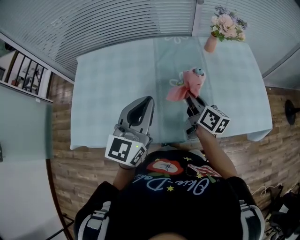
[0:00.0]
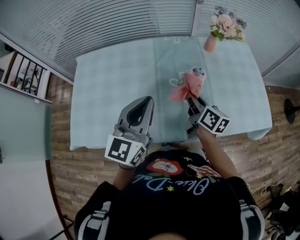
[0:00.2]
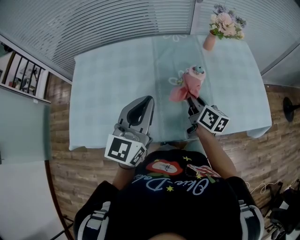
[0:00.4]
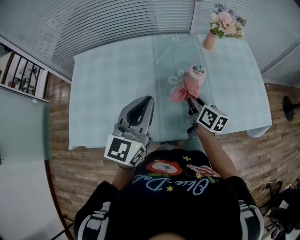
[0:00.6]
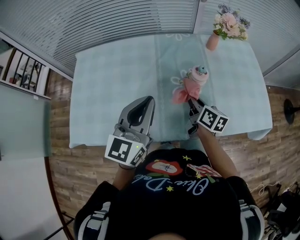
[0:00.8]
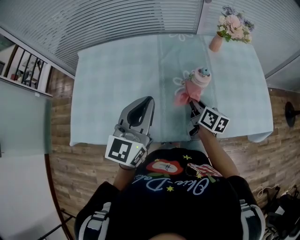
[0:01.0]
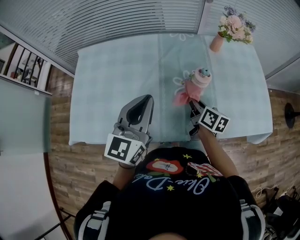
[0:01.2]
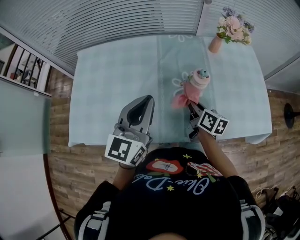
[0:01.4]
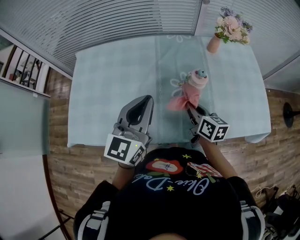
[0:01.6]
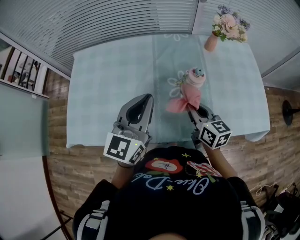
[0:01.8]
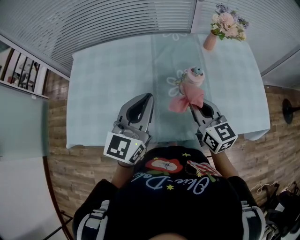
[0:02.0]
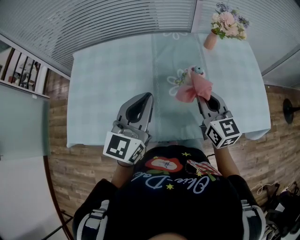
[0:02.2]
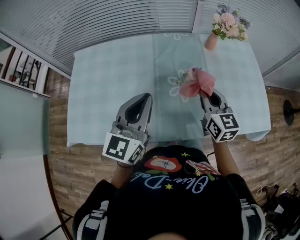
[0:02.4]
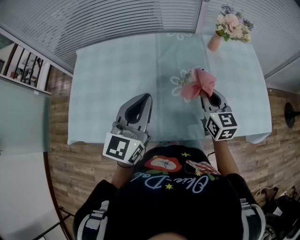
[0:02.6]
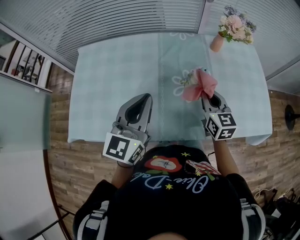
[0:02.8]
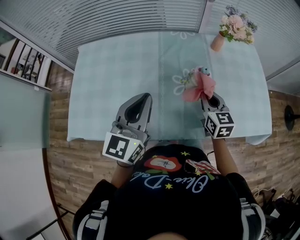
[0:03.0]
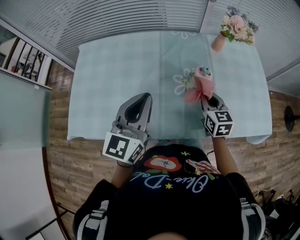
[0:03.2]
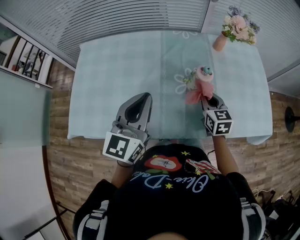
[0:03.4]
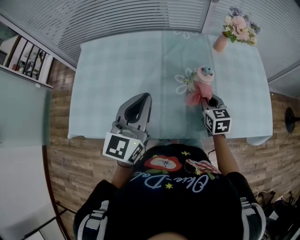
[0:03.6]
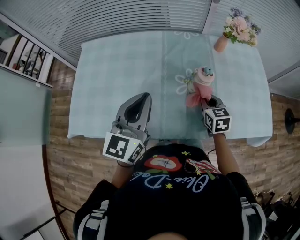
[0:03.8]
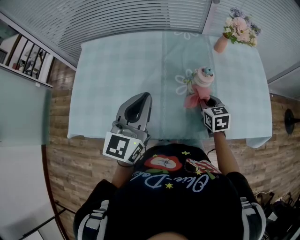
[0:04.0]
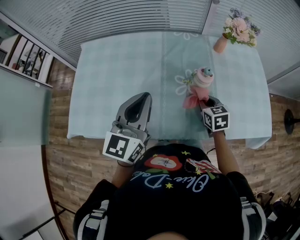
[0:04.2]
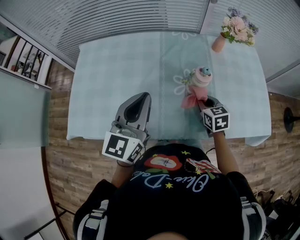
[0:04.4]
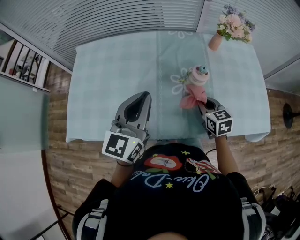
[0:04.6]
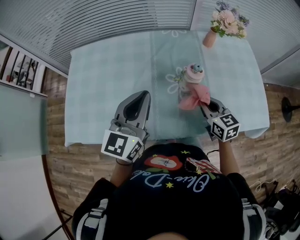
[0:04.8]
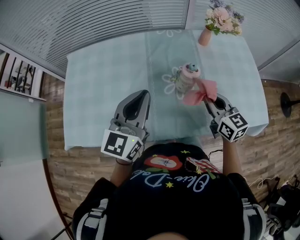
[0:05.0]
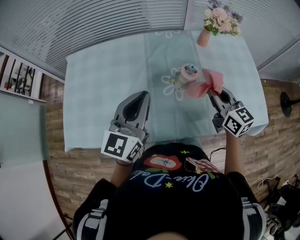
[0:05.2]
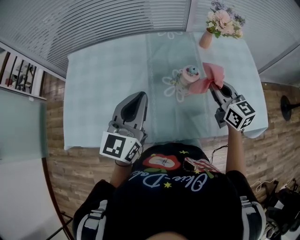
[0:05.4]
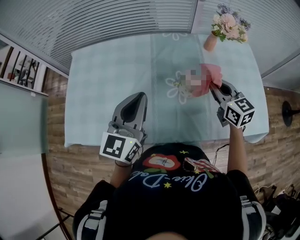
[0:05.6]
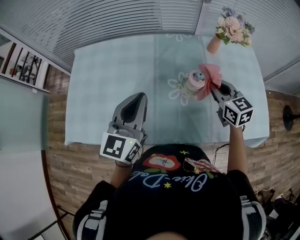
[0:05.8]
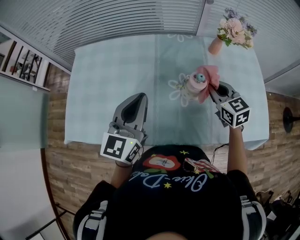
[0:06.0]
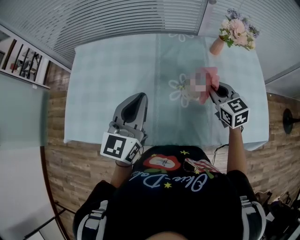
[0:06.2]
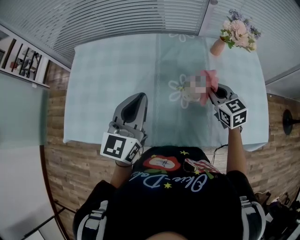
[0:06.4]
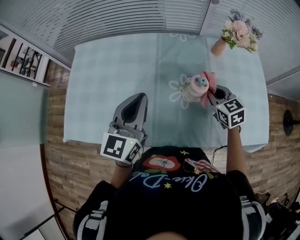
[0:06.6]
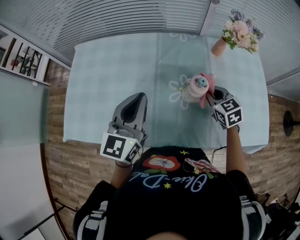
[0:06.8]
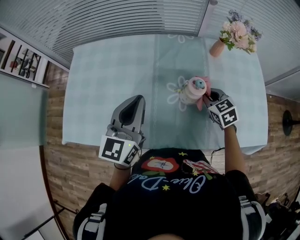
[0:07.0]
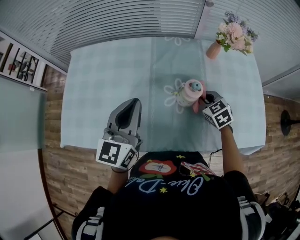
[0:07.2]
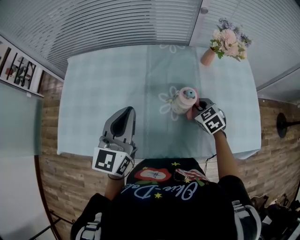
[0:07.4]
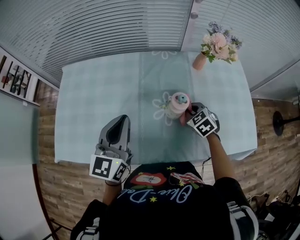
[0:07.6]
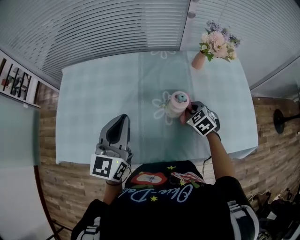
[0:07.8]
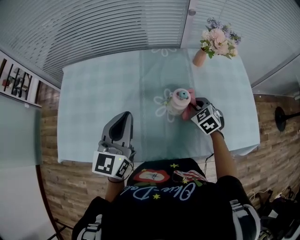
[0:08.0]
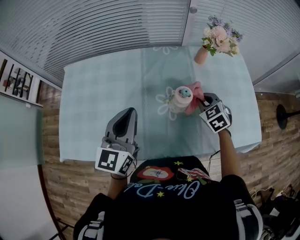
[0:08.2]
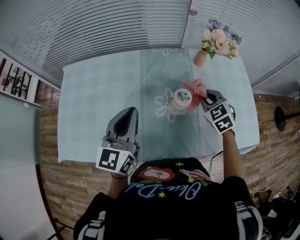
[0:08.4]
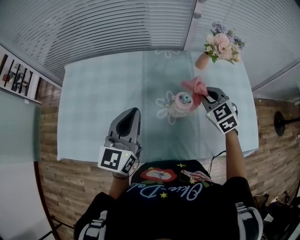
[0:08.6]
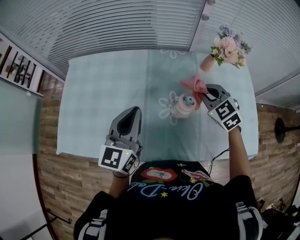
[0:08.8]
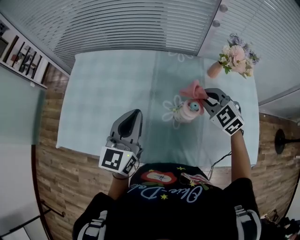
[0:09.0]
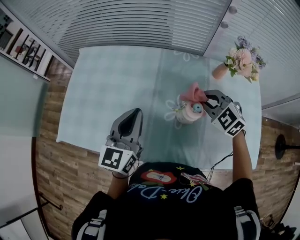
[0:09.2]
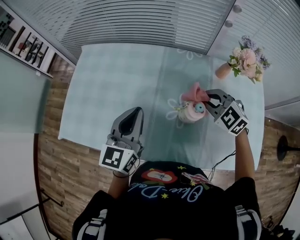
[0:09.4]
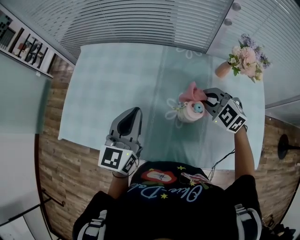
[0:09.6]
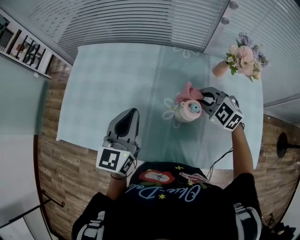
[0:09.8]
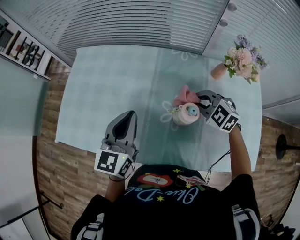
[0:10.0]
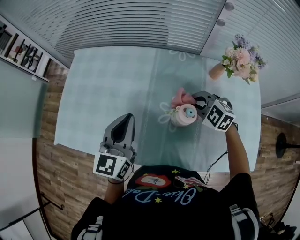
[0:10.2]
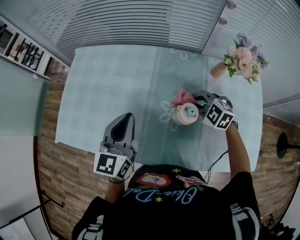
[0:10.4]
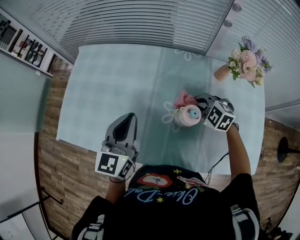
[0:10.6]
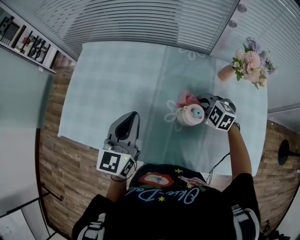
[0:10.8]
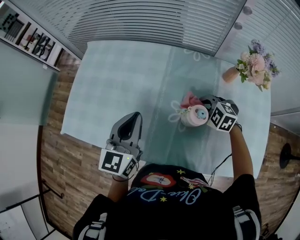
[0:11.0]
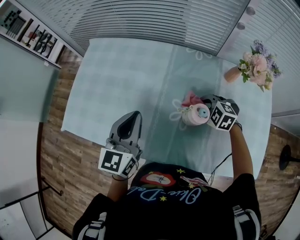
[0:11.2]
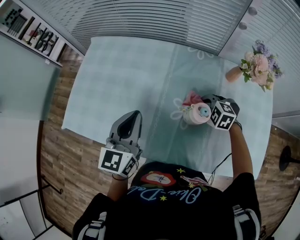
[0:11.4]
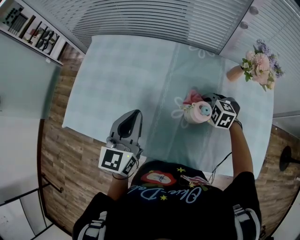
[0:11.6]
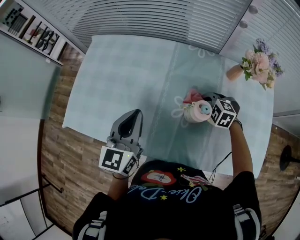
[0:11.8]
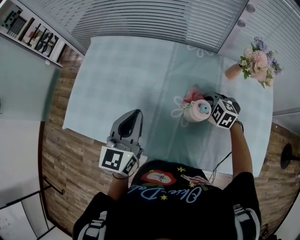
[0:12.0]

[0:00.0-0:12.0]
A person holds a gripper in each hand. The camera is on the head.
0:00.0 to 0:01.6: The right gripper changes place by approximately 5 cm.
0:01.6 to 0:03.0: The right gripper travels to the right by some 5 cm, travels upward and back again, about 10 cm each way, and changes its angle by some 30 degrees.
0:03.0 to 0:04.4: The right gripper travels downward by approximately 5 cm.
0:04.4 to 0:06.0: The right gripper heads upward and forward, covering some 10 cm.
0:06.0 to 0:07.6: The right gripper moves downward, approximately 10 cm, and swivels roughly 30 degrees.
0:07.6 to 0:09.0: The right gripper moves upward, about 15 cm, and swivels roughly 30 degrees.
0:09.0 to 0:10.4: The right gripper goes some 10 cm downward, and rotates roughly 20 degrees.
0:10.4 to 0:12.0: The right gripper travels downward by roughly 5 cm.

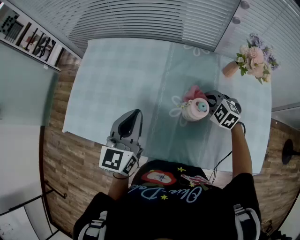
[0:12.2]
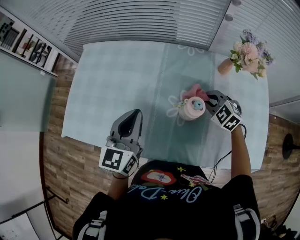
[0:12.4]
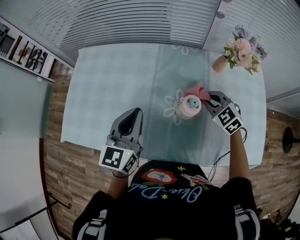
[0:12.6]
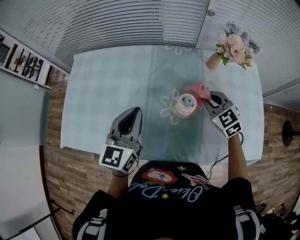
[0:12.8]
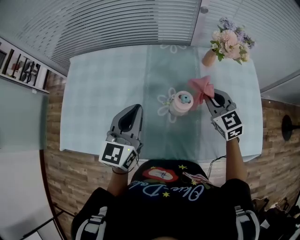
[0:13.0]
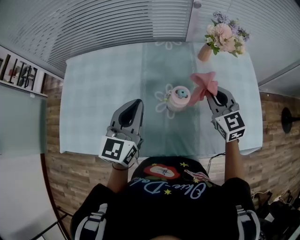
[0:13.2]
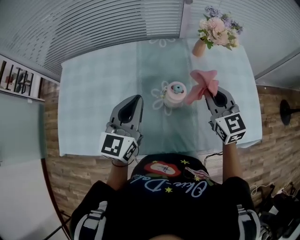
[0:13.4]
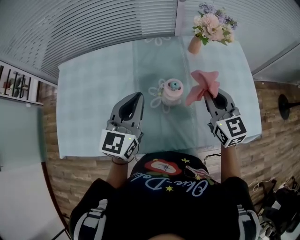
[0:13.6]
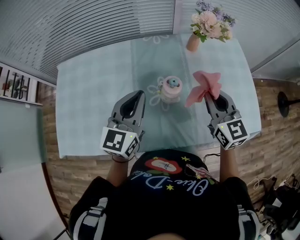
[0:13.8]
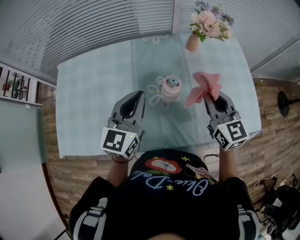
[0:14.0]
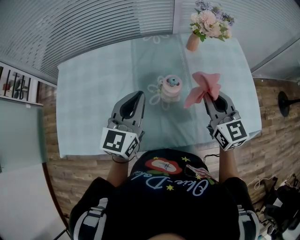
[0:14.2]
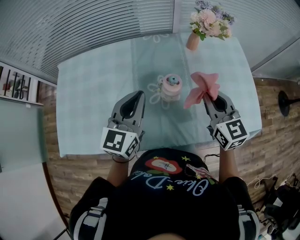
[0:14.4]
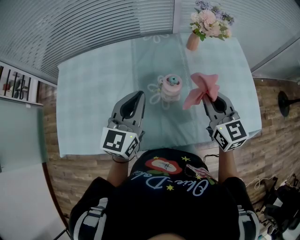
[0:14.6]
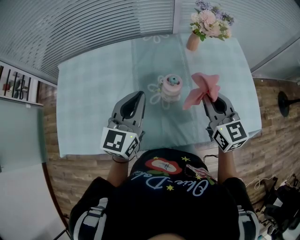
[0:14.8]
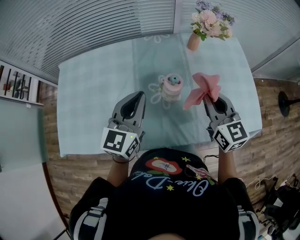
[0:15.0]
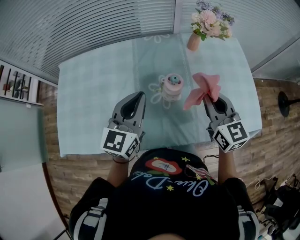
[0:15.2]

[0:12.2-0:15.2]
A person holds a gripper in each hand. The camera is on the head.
0:12.2 to 0:13.8: The left gripper shifts by approximately 10 cm, and rotates about 20 degrees; the right gripper shifts approximately 15 cm upward, and tips its fingers upward by some 40 degrees.
0:13.8 to 0:15.2: The grippers move only a little.

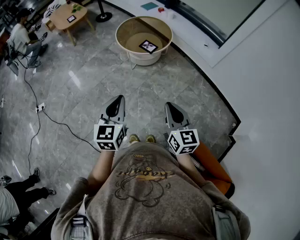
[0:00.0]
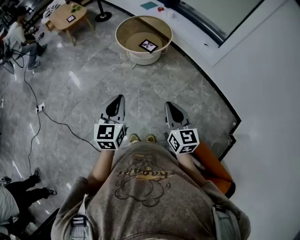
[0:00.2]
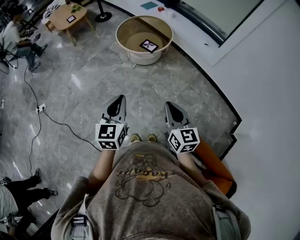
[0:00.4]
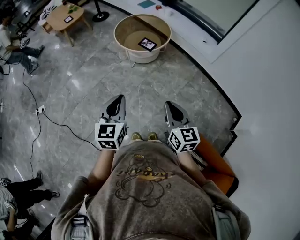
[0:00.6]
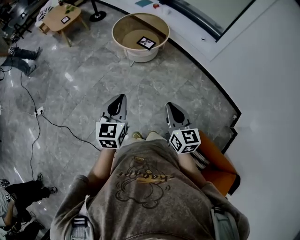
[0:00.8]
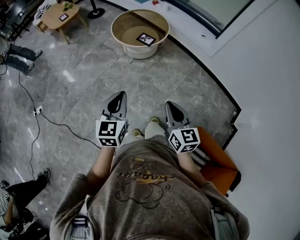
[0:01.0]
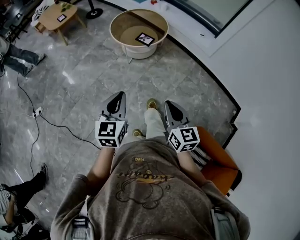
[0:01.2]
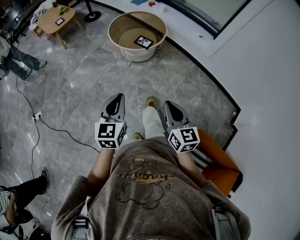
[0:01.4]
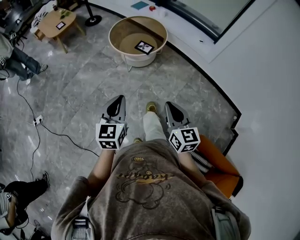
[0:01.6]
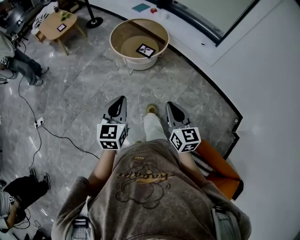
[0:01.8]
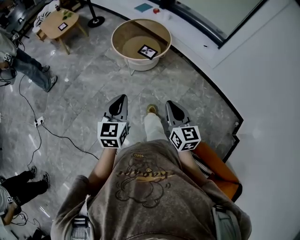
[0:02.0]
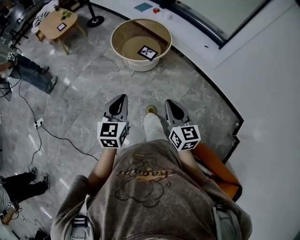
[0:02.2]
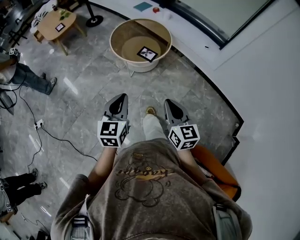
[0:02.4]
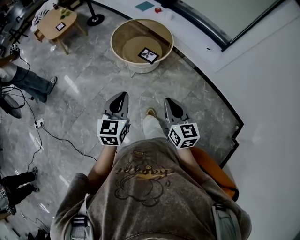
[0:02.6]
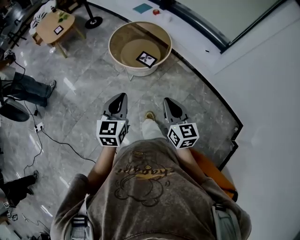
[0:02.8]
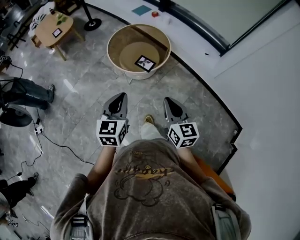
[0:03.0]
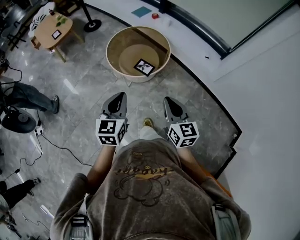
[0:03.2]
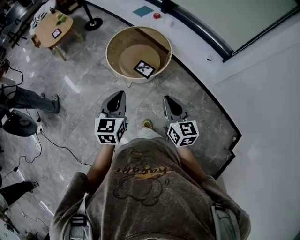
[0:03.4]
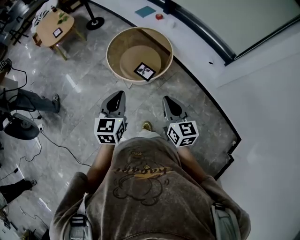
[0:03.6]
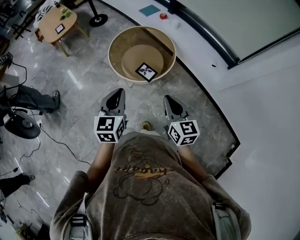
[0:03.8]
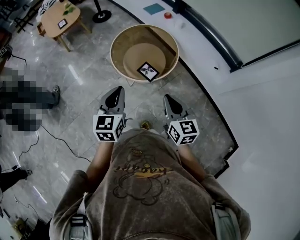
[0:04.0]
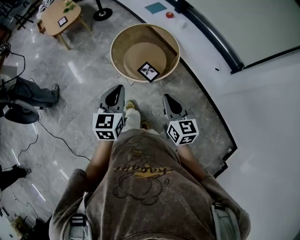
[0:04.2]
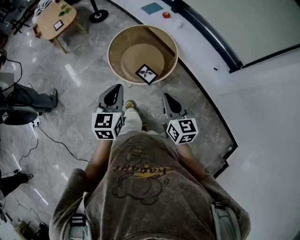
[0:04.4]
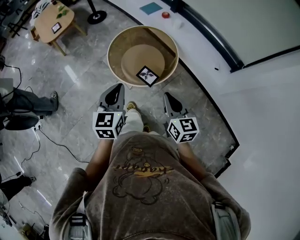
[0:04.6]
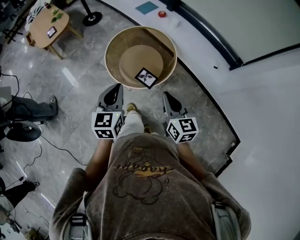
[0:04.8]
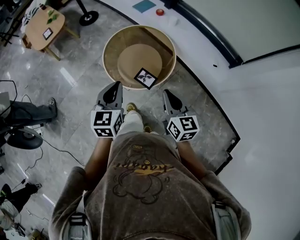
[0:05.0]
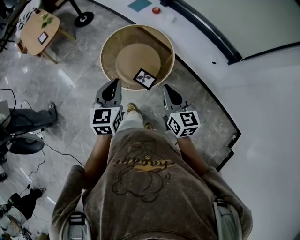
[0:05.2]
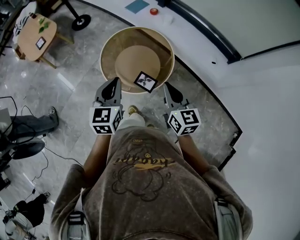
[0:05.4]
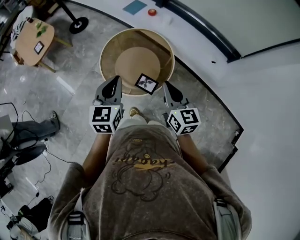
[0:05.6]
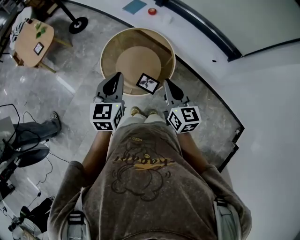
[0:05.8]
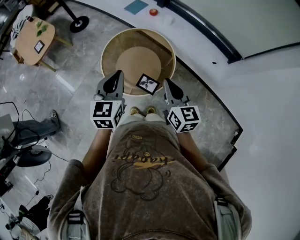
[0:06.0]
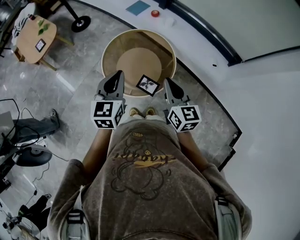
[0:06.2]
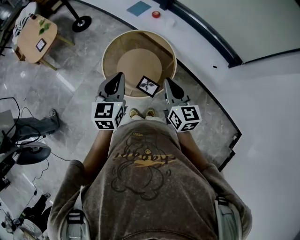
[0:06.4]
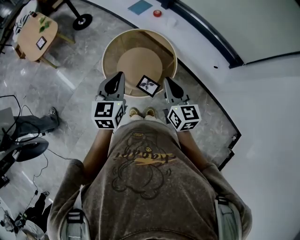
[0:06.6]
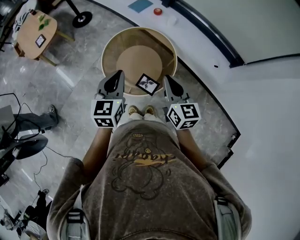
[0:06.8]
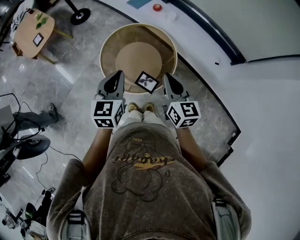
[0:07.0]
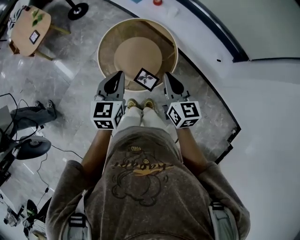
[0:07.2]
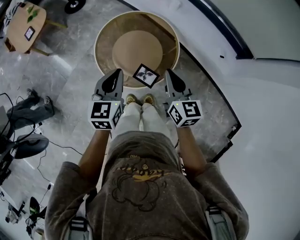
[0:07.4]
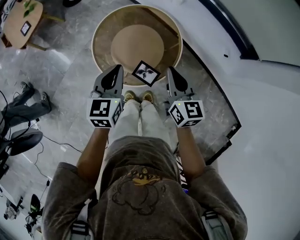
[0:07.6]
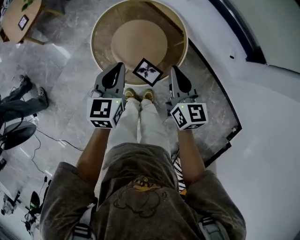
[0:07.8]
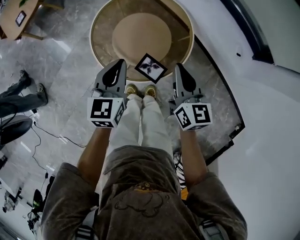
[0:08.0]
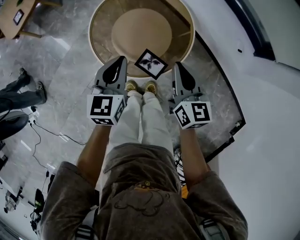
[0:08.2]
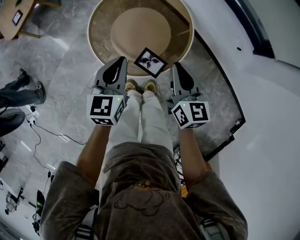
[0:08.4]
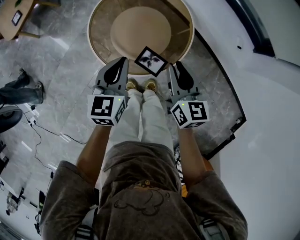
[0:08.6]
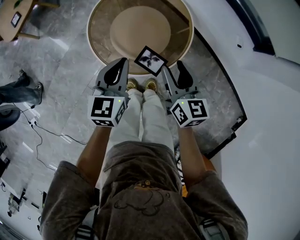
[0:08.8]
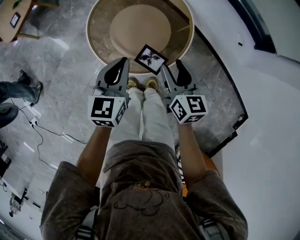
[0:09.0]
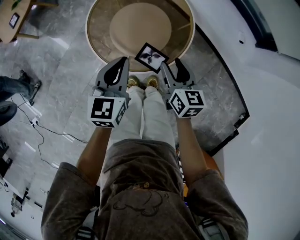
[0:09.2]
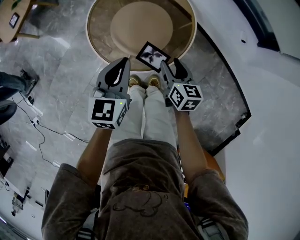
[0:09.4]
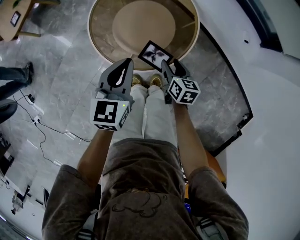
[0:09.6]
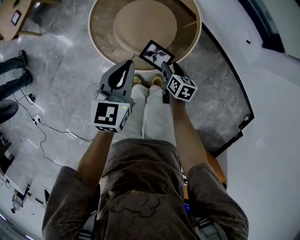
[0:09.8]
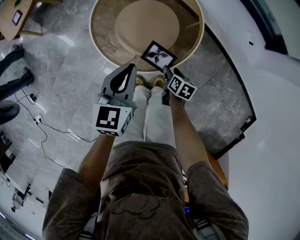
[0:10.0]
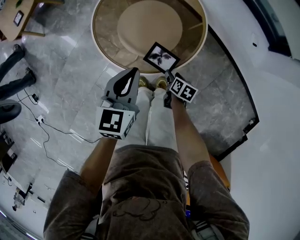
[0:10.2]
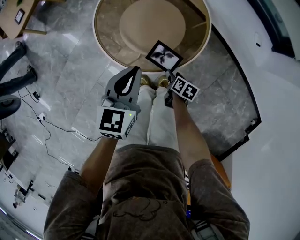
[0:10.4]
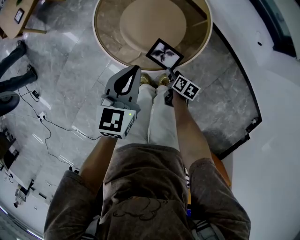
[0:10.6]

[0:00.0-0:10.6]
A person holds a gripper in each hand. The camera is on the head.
0:00.0 to 0:01.6: The right gripper changes place by about 5 cm, while the left gripper travels forward by approximately 5 cm.
0:01.6 to 0:03.0: The grippers both shift forward by approximately 20 cm.
0:03.0 to 0:04.6: The two grippers go roughly 20 cm forward.
0:04.6 to 0:06.0: Both grippers move forward, approximately 15 cm.
0:06.0 to 0:07.6: The right gripper moves downward and forward, about 15 cm. The left gripper shifts roughly 10 cm downward.
0:07.6 to 0:09.0: The two grippers go some 10 cm downward. The right gripper opens its fingers.
0:09.0 to 0:10.6: The right gripper goes about 30 cm downward, and turns by about 50 degrees. The left gripper moves some 5 cm.
